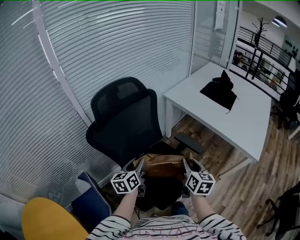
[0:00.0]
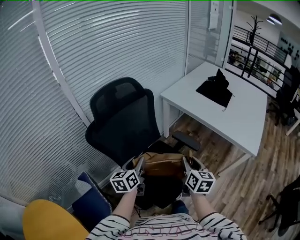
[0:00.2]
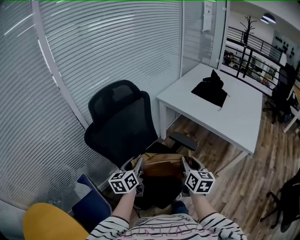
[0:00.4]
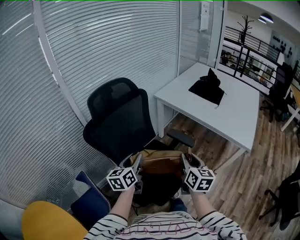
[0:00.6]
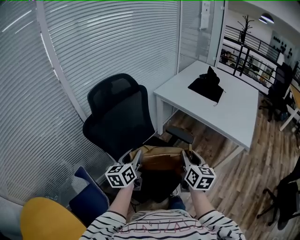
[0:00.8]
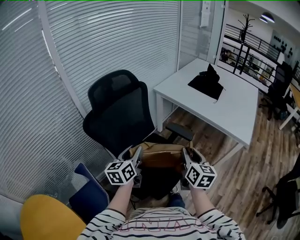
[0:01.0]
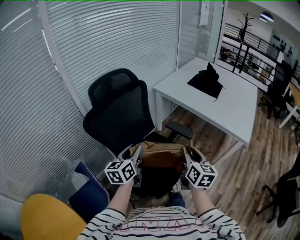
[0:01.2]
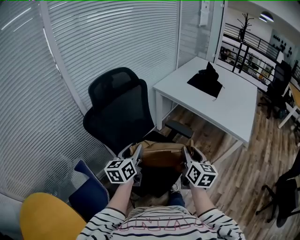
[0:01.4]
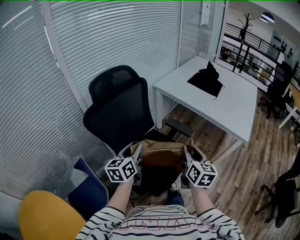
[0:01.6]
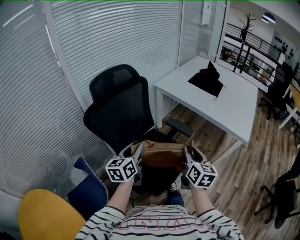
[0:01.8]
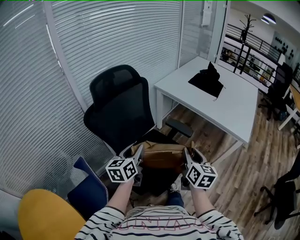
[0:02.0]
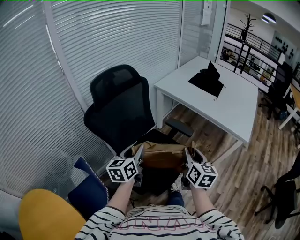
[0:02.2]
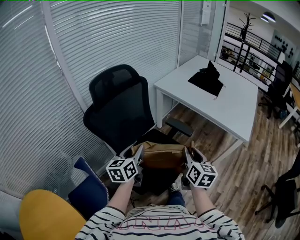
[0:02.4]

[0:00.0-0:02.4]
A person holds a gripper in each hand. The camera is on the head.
0:00.0 to 0:01.2: The left gripper shifts about 10 cm upward and backward. Meanwhile the right gripper shifts some 10 cm backward and upward.
0:01.2 to 0:02.4: The grippers stay close to where they were, moving slightly.

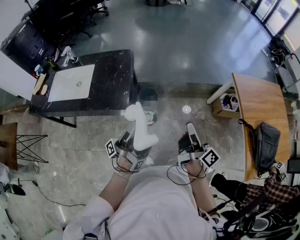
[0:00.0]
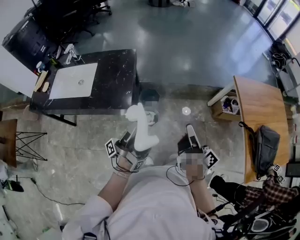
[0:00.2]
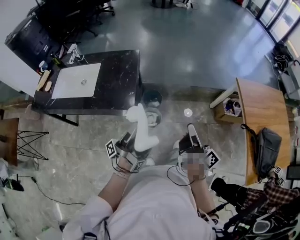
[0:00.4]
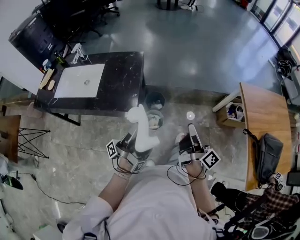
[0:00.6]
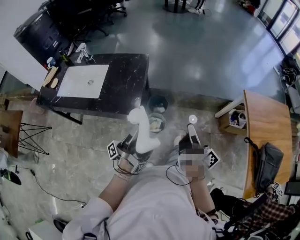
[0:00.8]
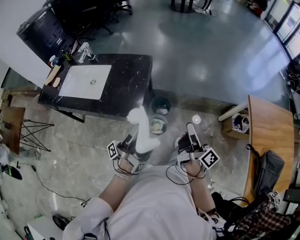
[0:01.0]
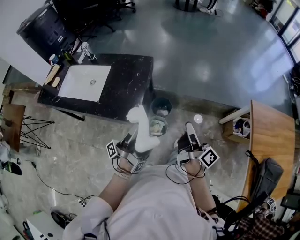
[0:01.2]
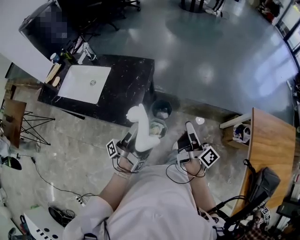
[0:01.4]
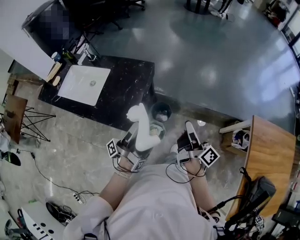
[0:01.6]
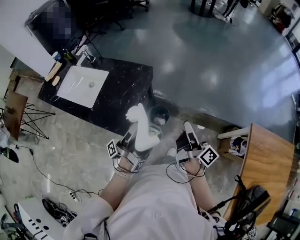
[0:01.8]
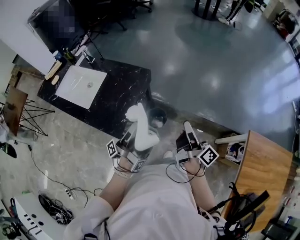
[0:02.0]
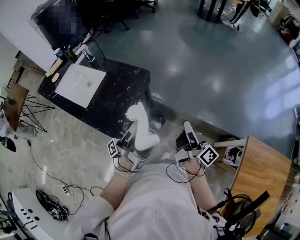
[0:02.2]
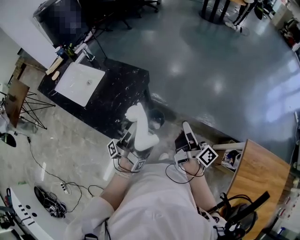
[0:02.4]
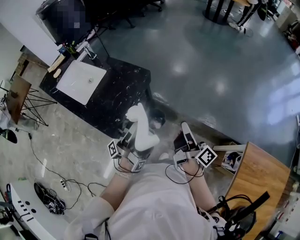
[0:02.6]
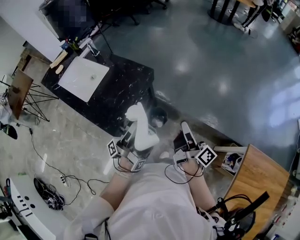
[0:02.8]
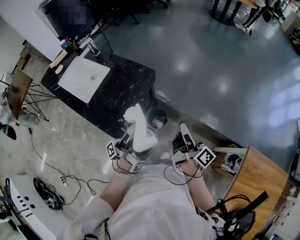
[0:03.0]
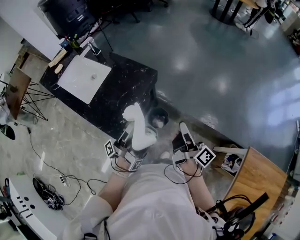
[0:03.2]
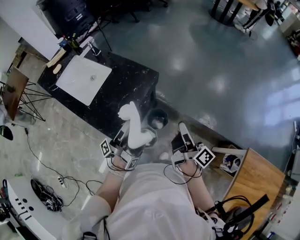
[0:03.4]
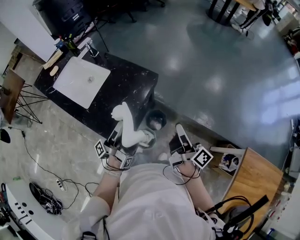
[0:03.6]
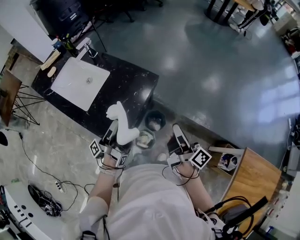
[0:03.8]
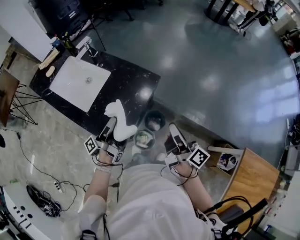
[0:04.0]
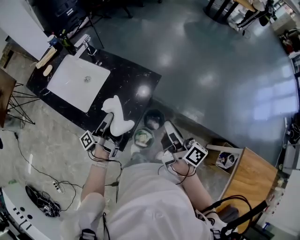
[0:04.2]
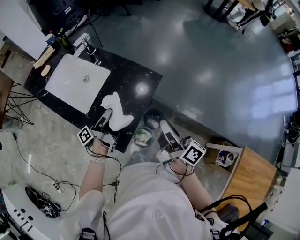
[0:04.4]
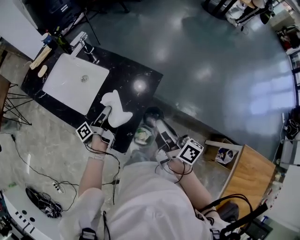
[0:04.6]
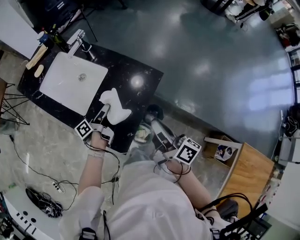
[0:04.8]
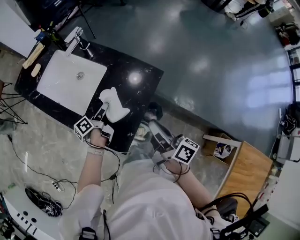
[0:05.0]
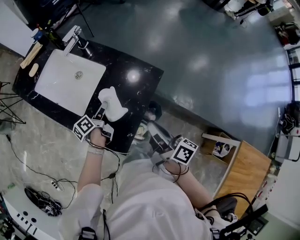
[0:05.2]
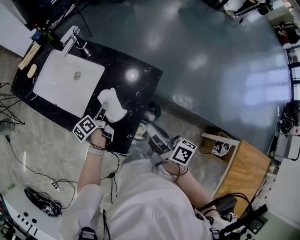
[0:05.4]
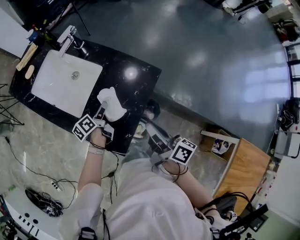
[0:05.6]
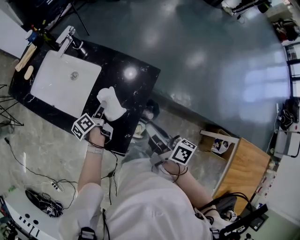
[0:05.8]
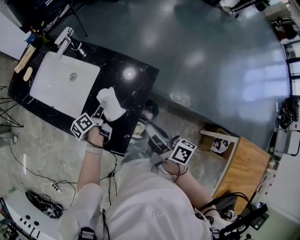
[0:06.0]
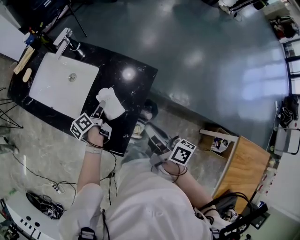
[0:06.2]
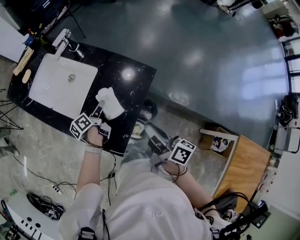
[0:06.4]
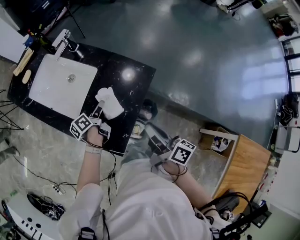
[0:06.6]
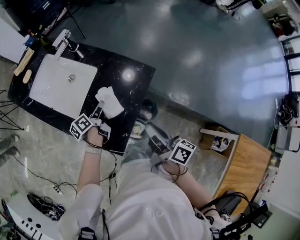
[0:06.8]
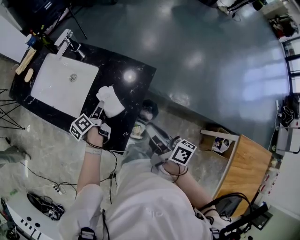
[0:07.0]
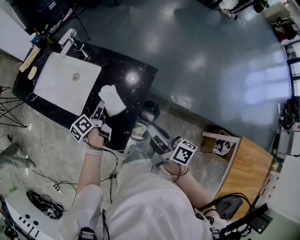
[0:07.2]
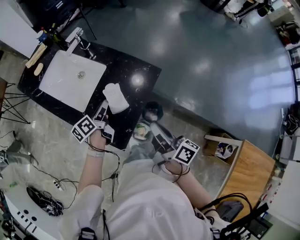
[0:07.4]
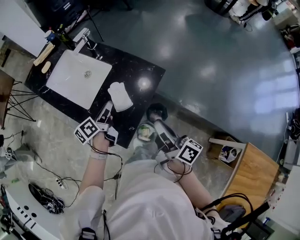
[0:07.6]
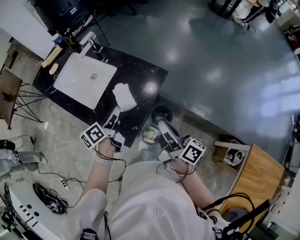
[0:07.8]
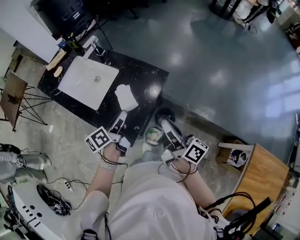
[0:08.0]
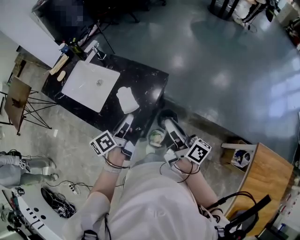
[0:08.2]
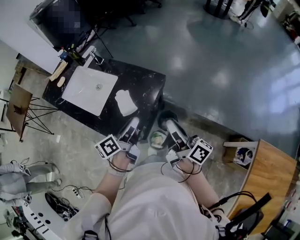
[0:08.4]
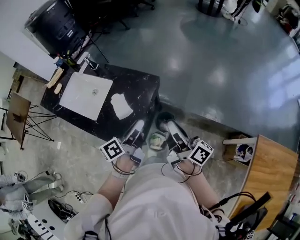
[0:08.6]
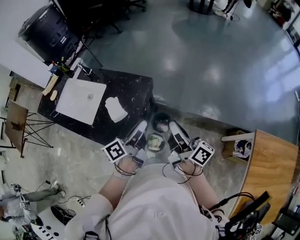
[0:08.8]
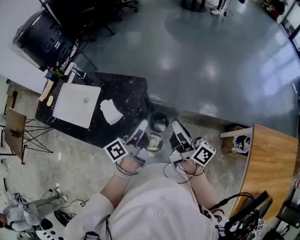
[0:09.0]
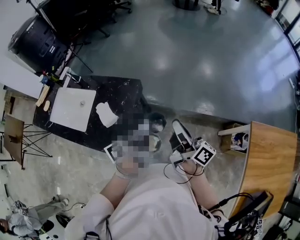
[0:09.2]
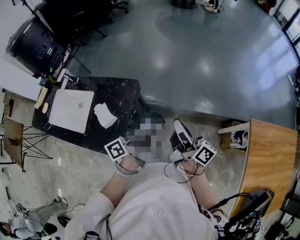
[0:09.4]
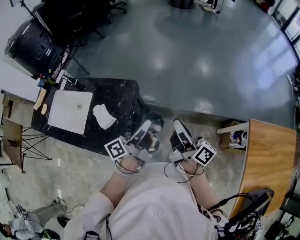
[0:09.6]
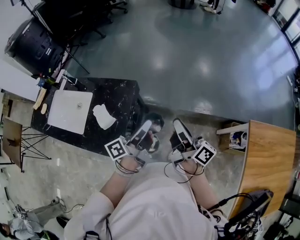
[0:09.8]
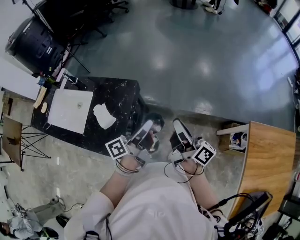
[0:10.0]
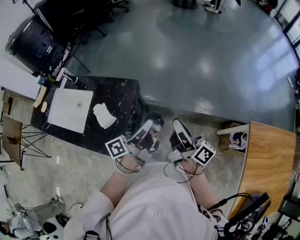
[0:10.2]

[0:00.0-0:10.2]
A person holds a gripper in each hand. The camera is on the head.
0:00.0 to 0:01.4: The right gripper shifts by approximately 20 cm.
0:01.4 to 0:03.0: The right gripper ends up approximately 20 cm from where it was.
0:03.0 to 0:04.4: The right gripper shifts by roughly 20 cm.
0:04.4 to 0:05.8: The right gripper goes approximately 5 cm downward.
0:07.2 to 0:08.8: The right gripper ends up approximately 20 cm from where it was, and swivels some 20 degrees.
0:08.8 to 0:10.2: The right gripper ends up approximately 5 cm from where it was.

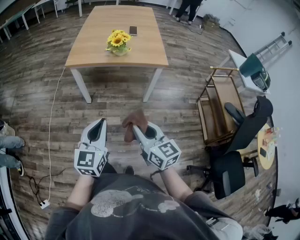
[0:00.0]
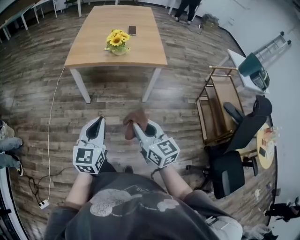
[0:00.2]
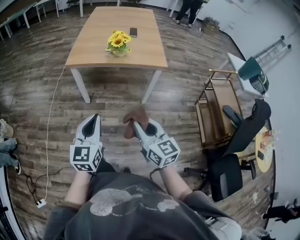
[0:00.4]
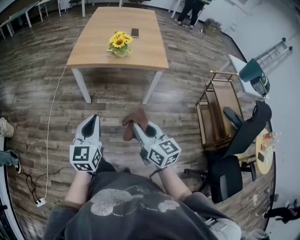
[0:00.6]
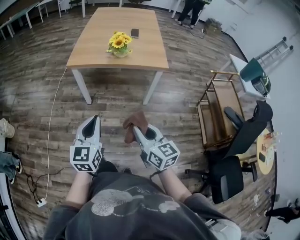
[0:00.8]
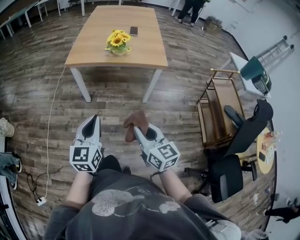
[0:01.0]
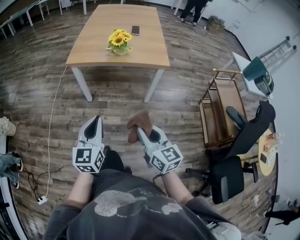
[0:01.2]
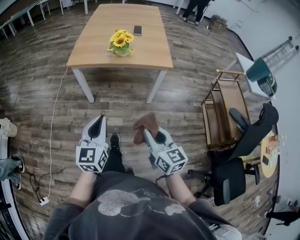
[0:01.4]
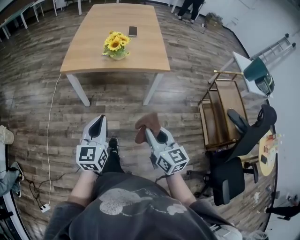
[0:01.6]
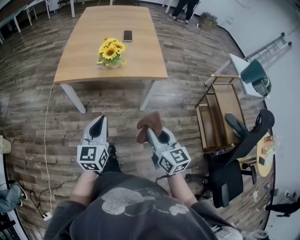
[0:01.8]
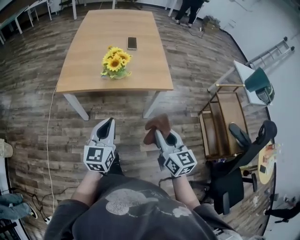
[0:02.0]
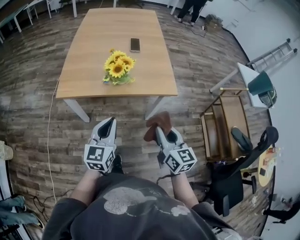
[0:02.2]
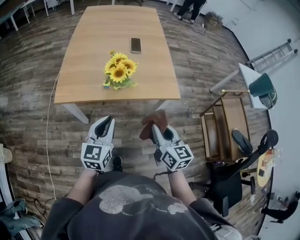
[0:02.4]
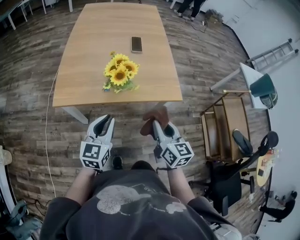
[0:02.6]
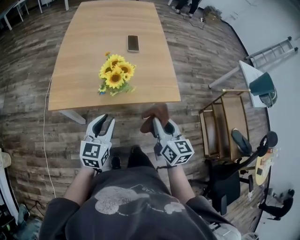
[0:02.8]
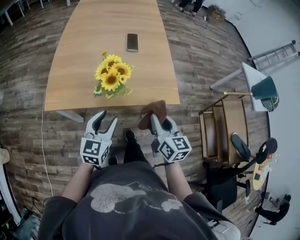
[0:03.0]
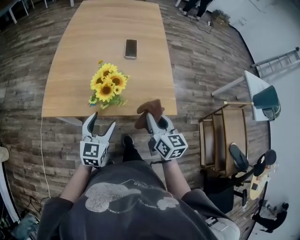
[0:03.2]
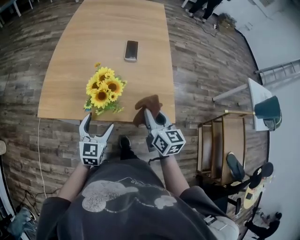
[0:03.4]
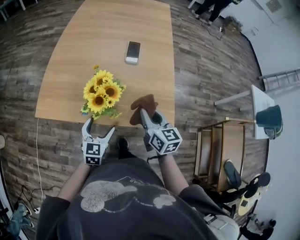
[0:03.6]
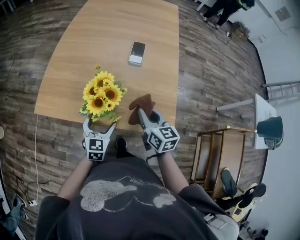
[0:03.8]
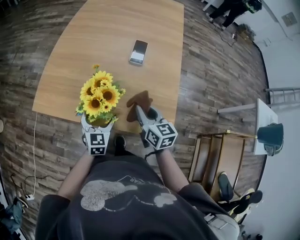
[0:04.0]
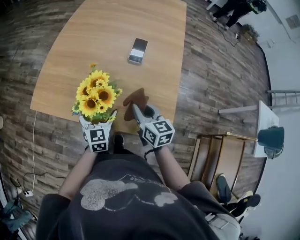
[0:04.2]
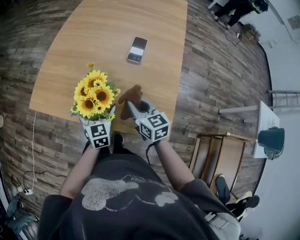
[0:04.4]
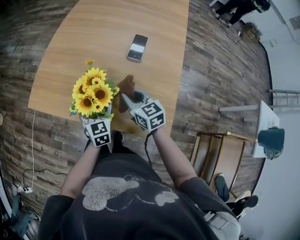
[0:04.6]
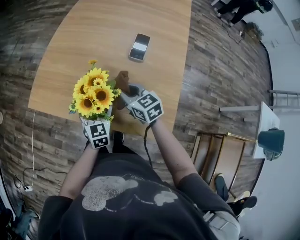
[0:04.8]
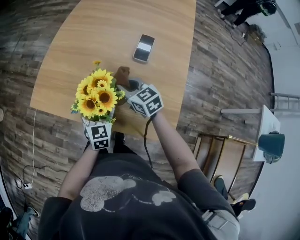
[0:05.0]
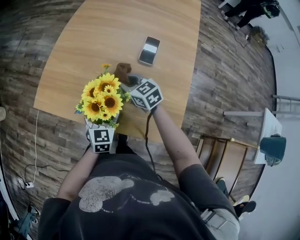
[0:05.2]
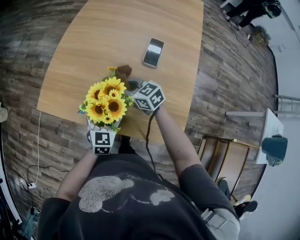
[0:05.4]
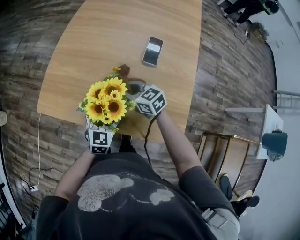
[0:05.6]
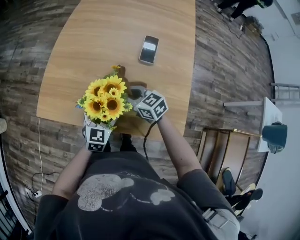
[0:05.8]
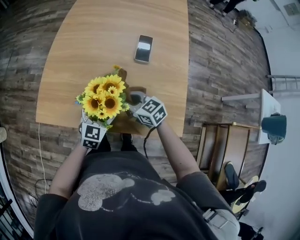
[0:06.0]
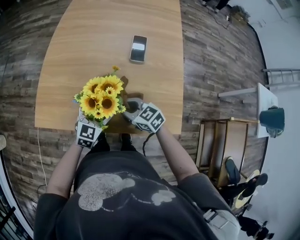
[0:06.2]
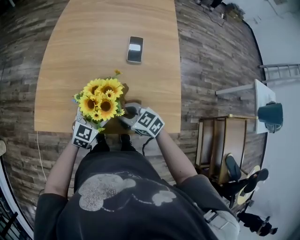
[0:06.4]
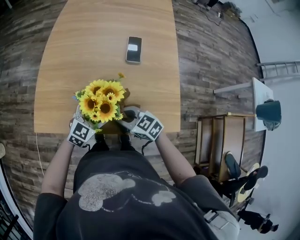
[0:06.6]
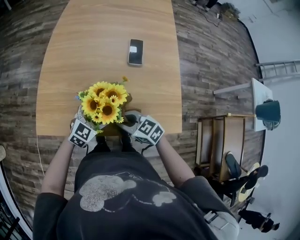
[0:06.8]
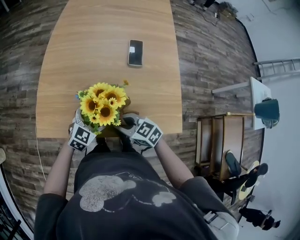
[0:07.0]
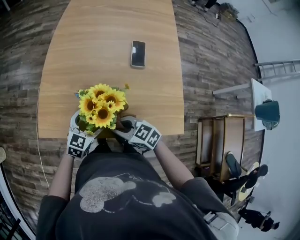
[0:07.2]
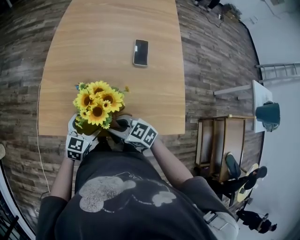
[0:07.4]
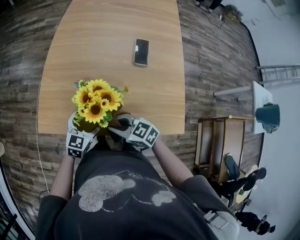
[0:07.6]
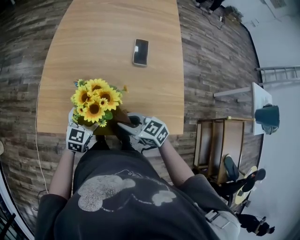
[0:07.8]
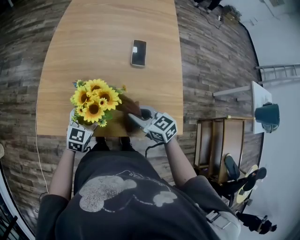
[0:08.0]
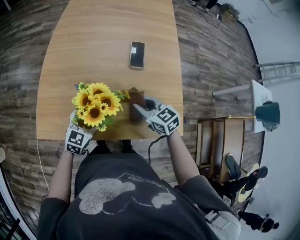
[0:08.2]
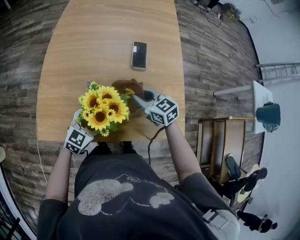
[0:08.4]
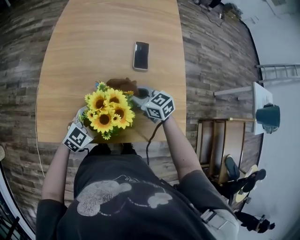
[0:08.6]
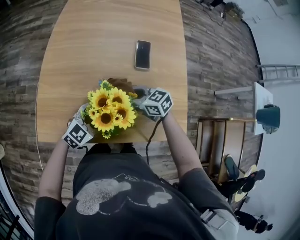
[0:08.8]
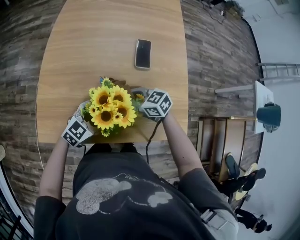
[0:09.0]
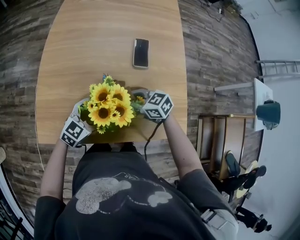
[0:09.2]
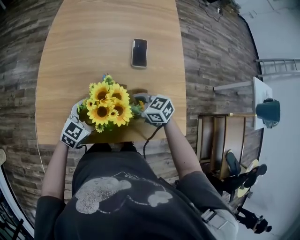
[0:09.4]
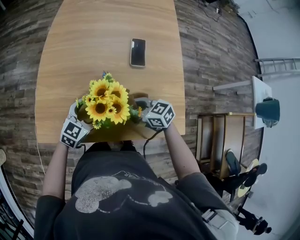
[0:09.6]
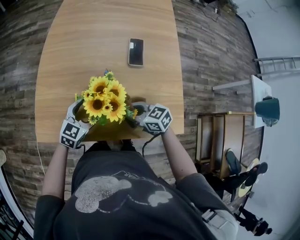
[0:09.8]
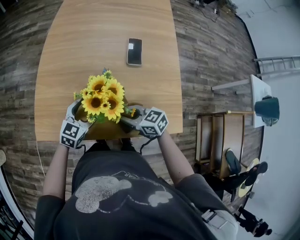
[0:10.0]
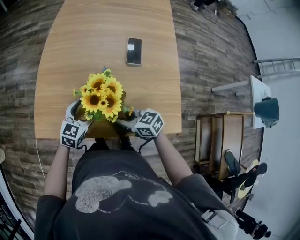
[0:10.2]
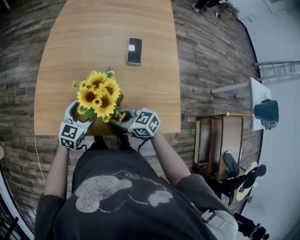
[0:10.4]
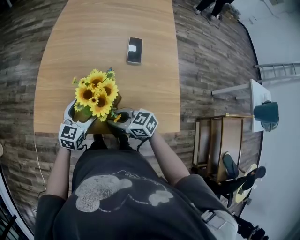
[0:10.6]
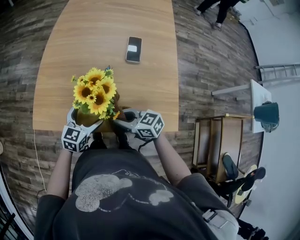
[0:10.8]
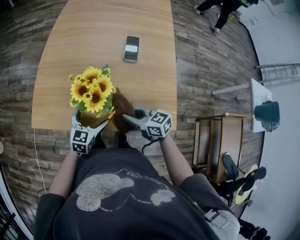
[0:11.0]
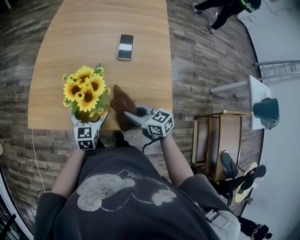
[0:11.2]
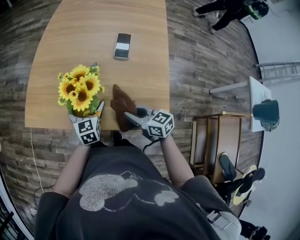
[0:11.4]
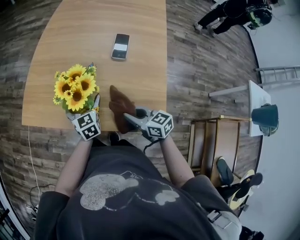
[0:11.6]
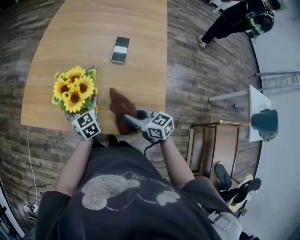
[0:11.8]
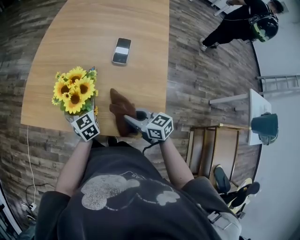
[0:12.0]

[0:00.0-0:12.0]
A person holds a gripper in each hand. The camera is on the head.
0:00.0 to 0:01.6: The right gripper is displaced to the right and forward by roughly 10 cm, while the left gripper moves forward, about 10 cm.
0:01.6 to 0:03.0: Both grippers move forward, roughly 30 cm.
0:03.0 to 0:04.4: The left gripper changes place by roughly 20 cm, turns by some 40 degrees, and opens. The right gripper shifts by approximately 25 cm, and turns by roughly 40 degrees.
0:04.4 to 0:06.0: The right gripper heads to the left and forward, covering some 10 cm, and rotates approximately 20 degrees, while the left gripper swivels approximately 30 degrees.
0:06.0 to 0:07.6: The left gripper moves to the left, about 10 cm, while the right gripper travels to the left and backward by about 10 cm.
0:07.6 to 0:09.0: The left gripper ends up about 5 cm from where it was, and rotates roughly 30 degrees; the right gripper shifts by about 15 cm.
0:09.0 to 0:10.4: The right gripper changes place by roughly 10 cm. Meanwhile the left gripper changes its angle by roughly 30 degrees.
0:10.4 to 0:12.0: The right gripper moves to the right and backward, approximately 15 cm. The left gripper rotates some 50 degrees.
